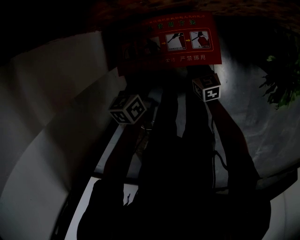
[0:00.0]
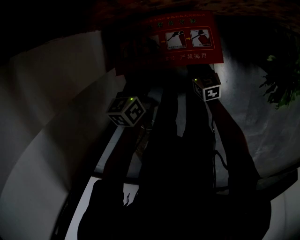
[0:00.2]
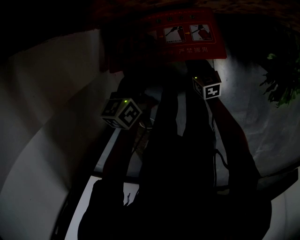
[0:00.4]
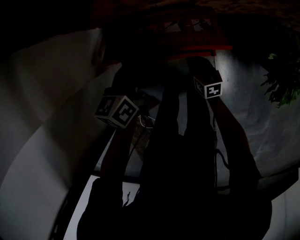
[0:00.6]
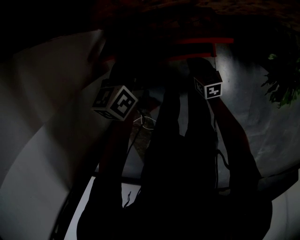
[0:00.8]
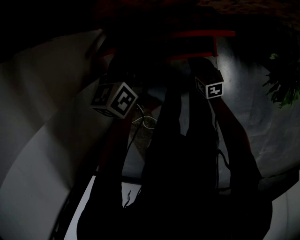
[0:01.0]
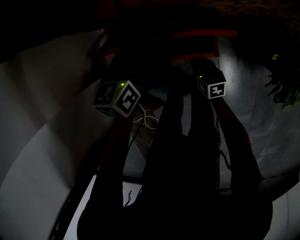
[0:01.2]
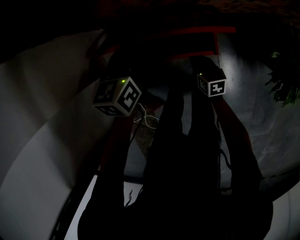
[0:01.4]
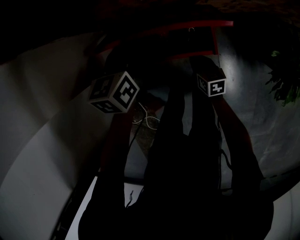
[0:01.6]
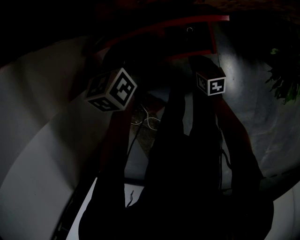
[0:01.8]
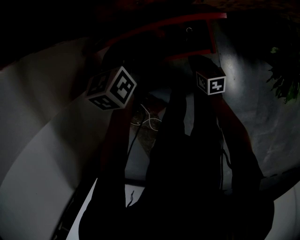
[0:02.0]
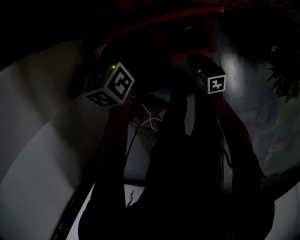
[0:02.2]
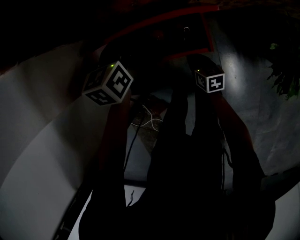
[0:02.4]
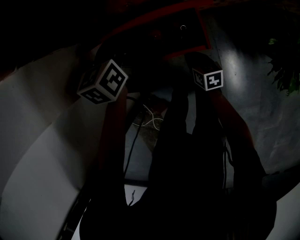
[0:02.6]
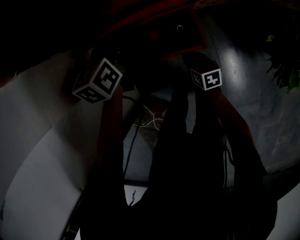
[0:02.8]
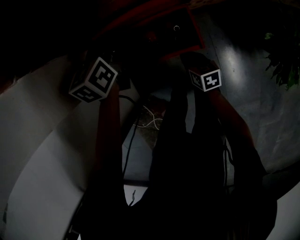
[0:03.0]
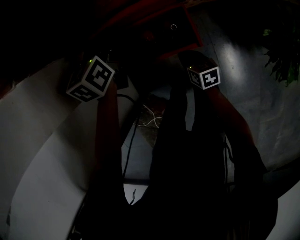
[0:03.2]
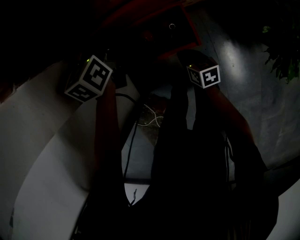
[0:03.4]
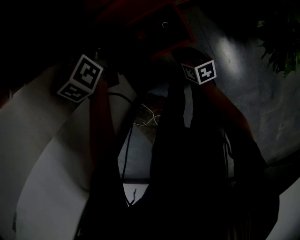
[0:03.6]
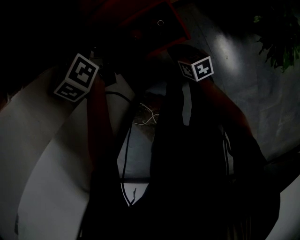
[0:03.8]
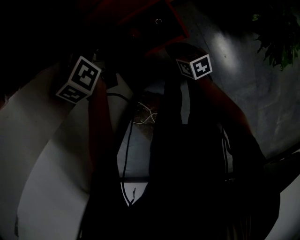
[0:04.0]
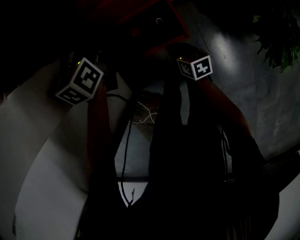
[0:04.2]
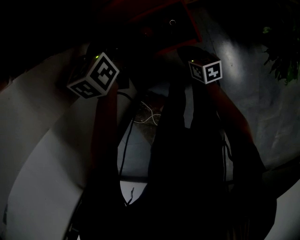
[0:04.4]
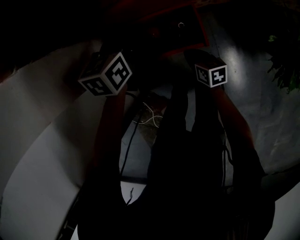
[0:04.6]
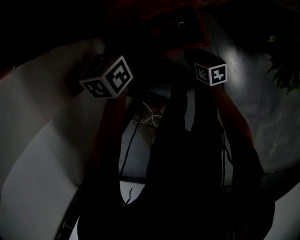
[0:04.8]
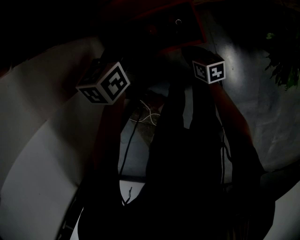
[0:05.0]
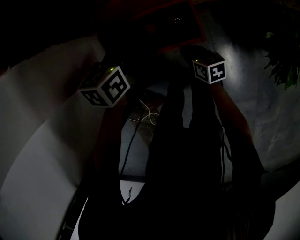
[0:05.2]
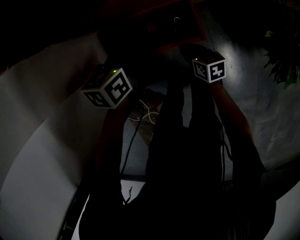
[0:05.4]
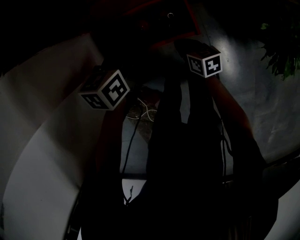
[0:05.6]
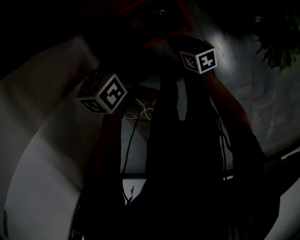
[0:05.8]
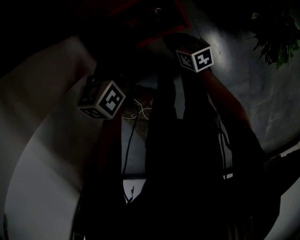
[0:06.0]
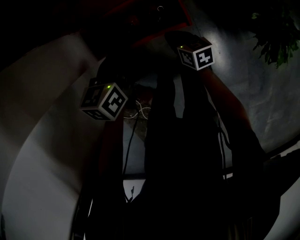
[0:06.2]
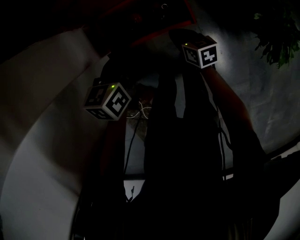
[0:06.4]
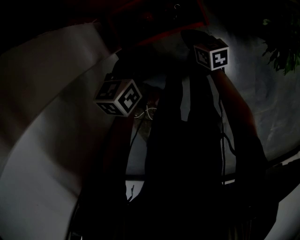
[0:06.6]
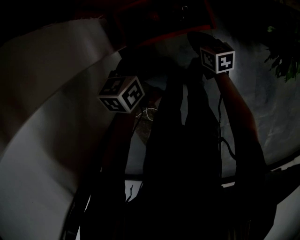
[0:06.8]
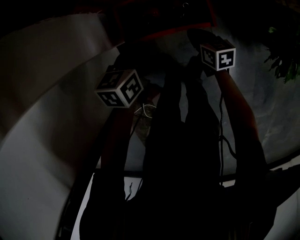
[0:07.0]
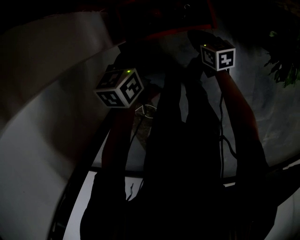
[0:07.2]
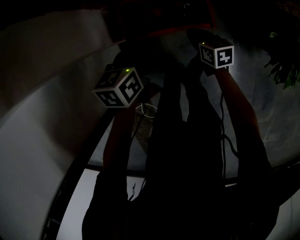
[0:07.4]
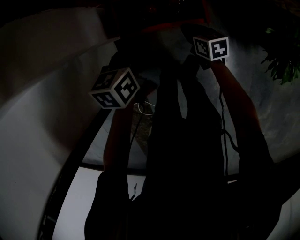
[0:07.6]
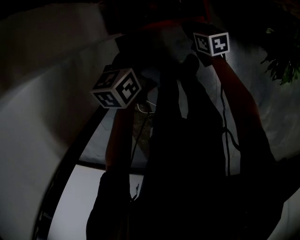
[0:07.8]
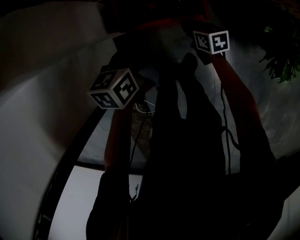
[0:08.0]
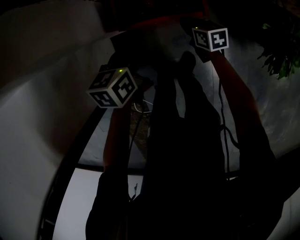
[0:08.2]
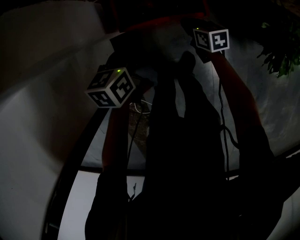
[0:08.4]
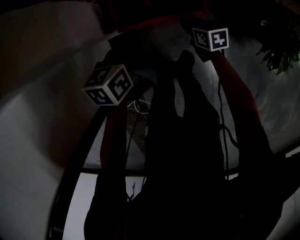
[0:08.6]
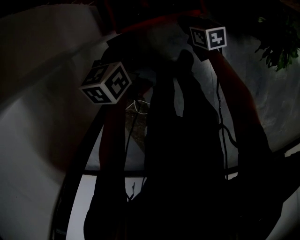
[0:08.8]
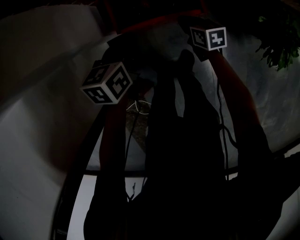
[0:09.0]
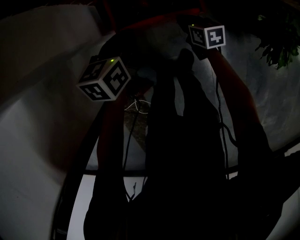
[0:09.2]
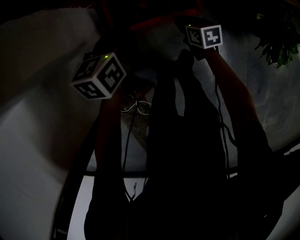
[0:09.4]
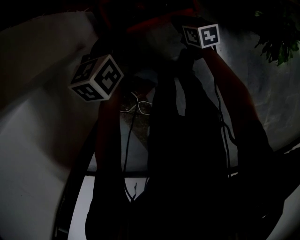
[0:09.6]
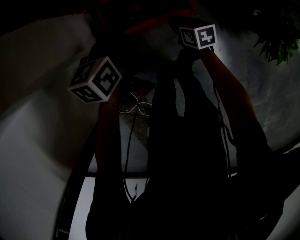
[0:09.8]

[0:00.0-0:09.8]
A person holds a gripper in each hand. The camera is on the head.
0:00.0 to 0:01.4: The left gripper travels forward and upward by roughly 15 cm, and changes its angle by approximately 20 degrees.
0:01.4 to 0:02.8: The left gripper shifts some 5 cm forward.
0:02.8 to 0:04.2: There are only small adjustments of the grippers.
0:04.2 to 0:05.6: The left gripper goes approximately 10 cm backward.
0:05.6 to 0:07.0: The left gripper heads backward, covering about 5 cm.
0:07.0 to 0:08.4: There are only small adjustments of the grippers.
0:08.4 to 0:09.8: The left gripper moves forward, roughly 5 cm.

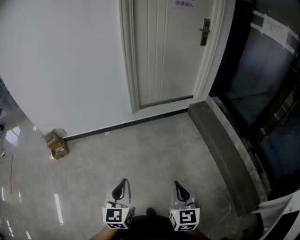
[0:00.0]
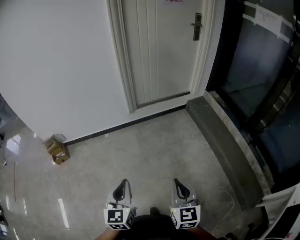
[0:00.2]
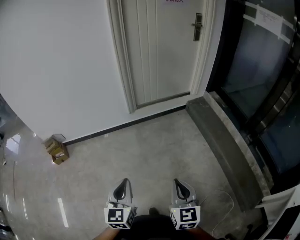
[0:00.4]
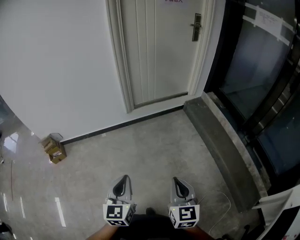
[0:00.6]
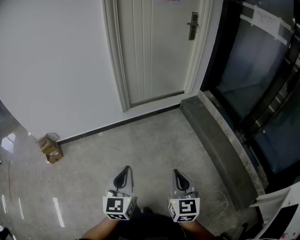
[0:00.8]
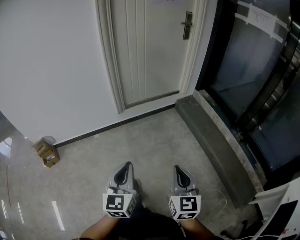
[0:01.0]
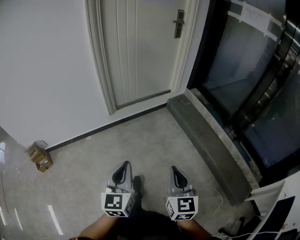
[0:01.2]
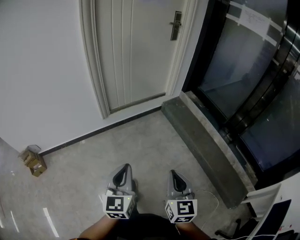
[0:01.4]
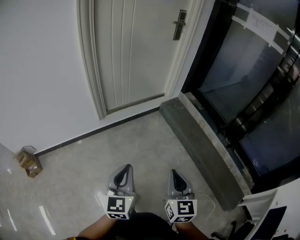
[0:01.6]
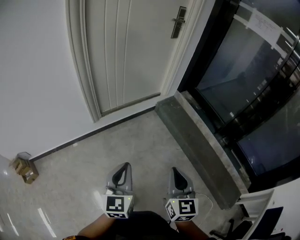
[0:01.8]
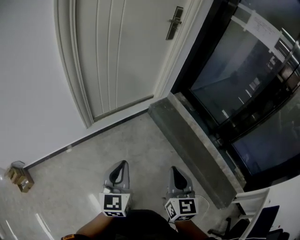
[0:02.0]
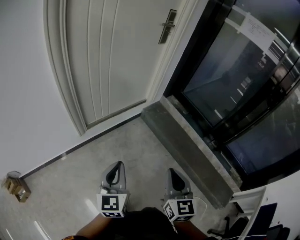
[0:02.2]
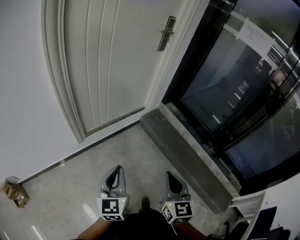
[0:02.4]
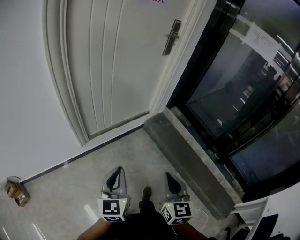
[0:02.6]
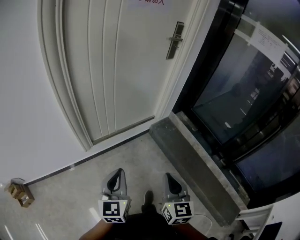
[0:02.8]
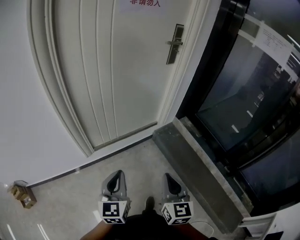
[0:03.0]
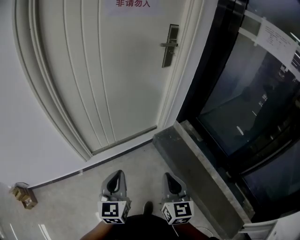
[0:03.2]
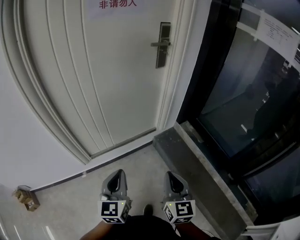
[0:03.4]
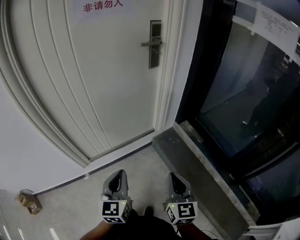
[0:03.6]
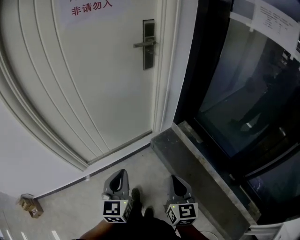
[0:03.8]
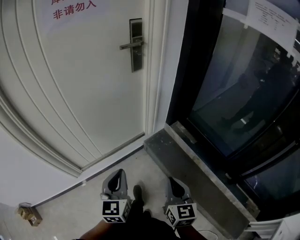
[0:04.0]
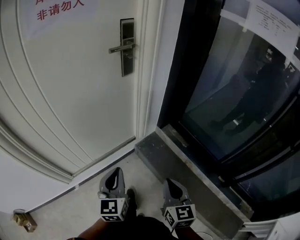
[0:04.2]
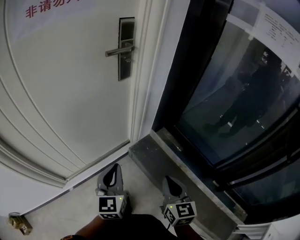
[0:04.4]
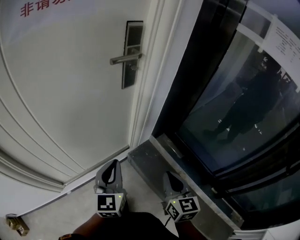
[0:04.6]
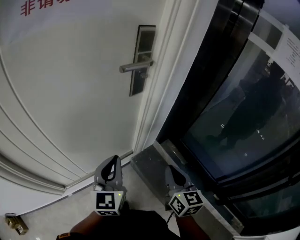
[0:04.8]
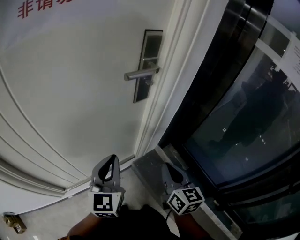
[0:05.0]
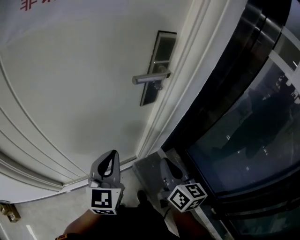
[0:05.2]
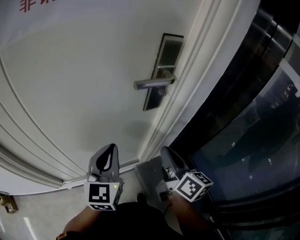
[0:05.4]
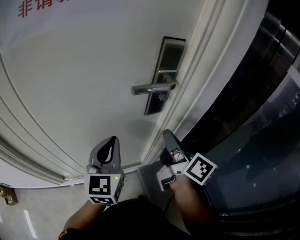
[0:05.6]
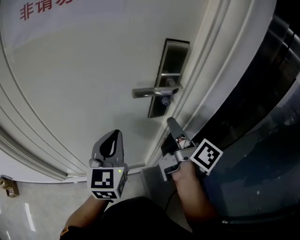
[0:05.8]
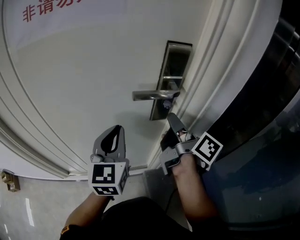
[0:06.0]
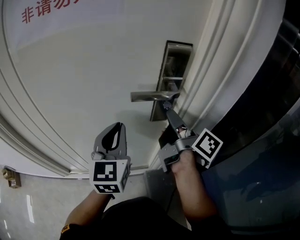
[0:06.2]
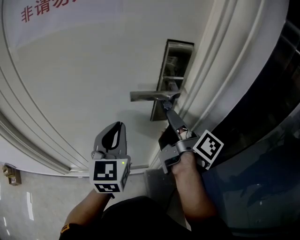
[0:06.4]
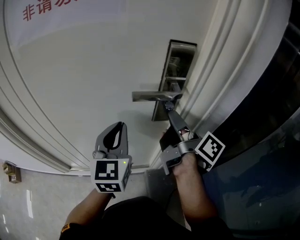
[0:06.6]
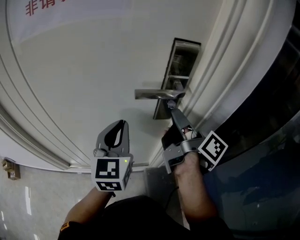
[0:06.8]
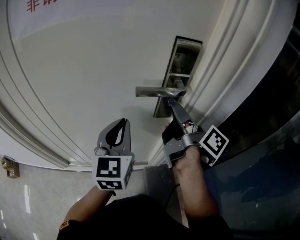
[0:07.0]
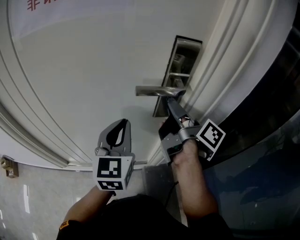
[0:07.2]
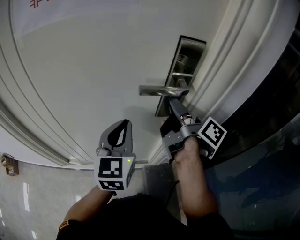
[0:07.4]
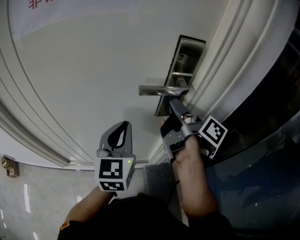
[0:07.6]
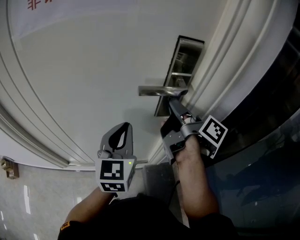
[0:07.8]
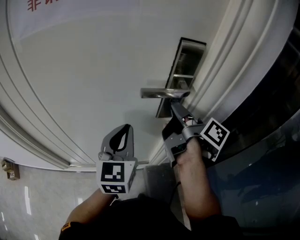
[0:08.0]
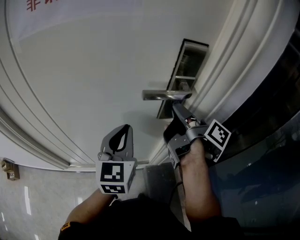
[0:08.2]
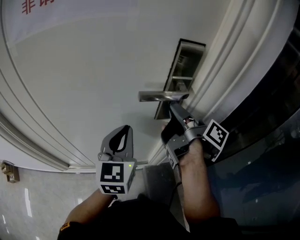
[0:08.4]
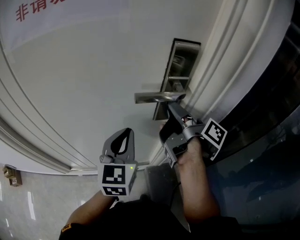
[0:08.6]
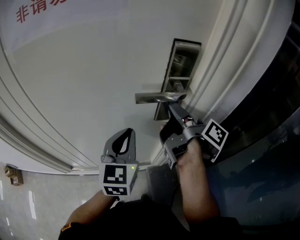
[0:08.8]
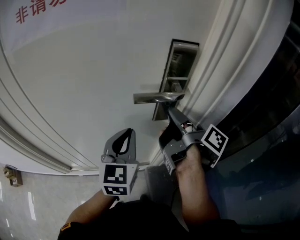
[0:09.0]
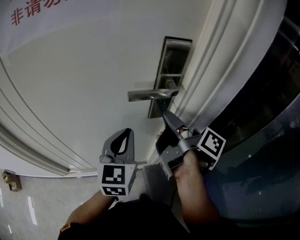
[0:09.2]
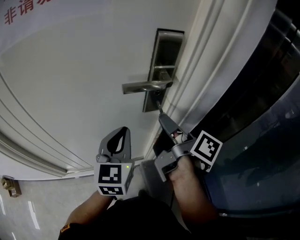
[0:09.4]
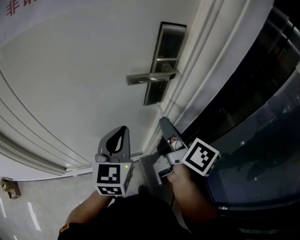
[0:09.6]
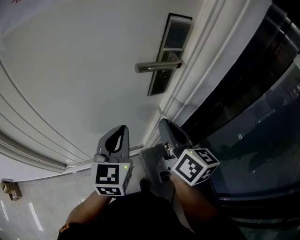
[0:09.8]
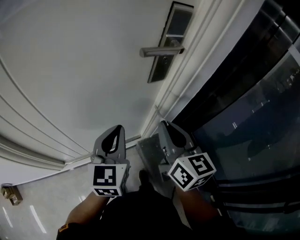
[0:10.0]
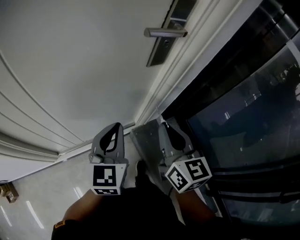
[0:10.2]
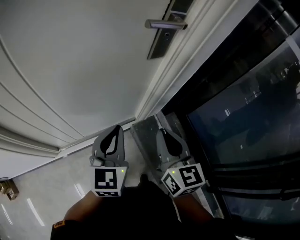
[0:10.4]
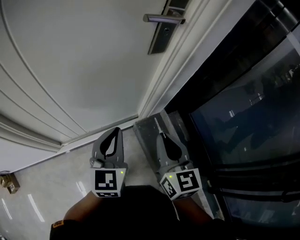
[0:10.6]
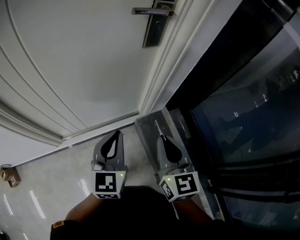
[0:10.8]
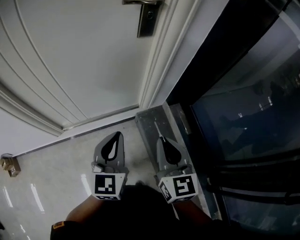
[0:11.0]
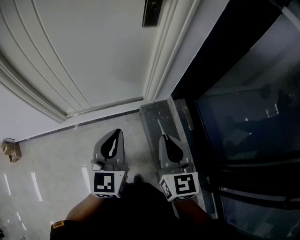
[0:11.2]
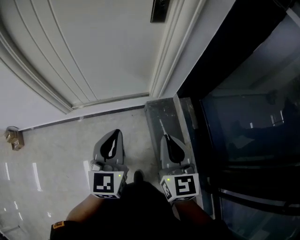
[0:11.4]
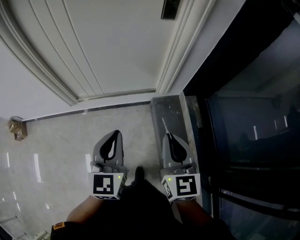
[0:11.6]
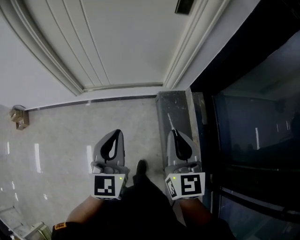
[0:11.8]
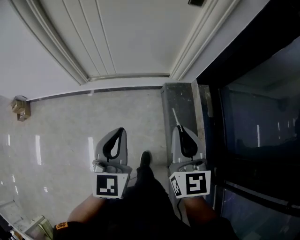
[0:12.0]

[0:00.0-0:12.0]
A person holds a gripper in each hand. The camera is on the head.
0:00.0 to 0:01.6: Both grippers travel together forward and to the right, approximately 25 cm.
0:01.6 to 0:03.0: The two grippers go roughly 30 cm forward.
0:03.0 to 0:04.4: The grippers both shift forward and to the right by some 40 cm.
0:04.4 to 0:06.0: The left gripper moves about 30 cm, and turns by about 30 degrees, while the right gripper ends up approximately 50 cm from where it was, and changes its angle by roughly 70 degrees.
0:06.0 to 0:09.0: The grippers stay close to where they were, moving slightly.
0:09.0 to 0:10.4: The right gripper moves backward and downward, some 25 cm, and twists approximately 80 degrees counterclockwise, seen from behind, while the left gripper moves backward and downward, approximately 20 cm.
0:10.4 to 0:12.0: Both grippers move backward, some 30 cm. The left gripper swivels some 20 degrees.

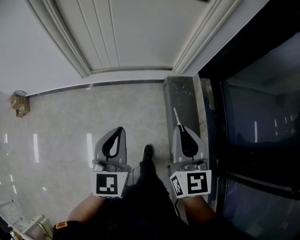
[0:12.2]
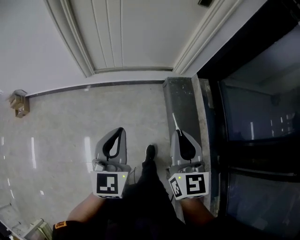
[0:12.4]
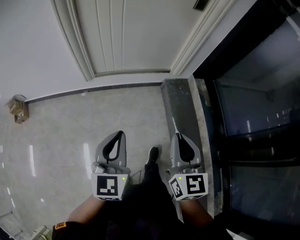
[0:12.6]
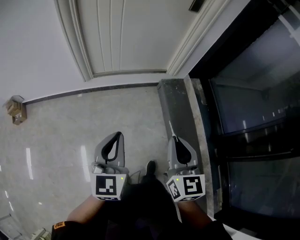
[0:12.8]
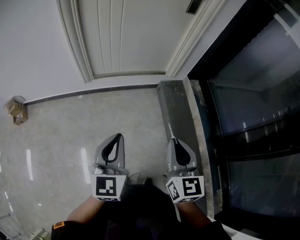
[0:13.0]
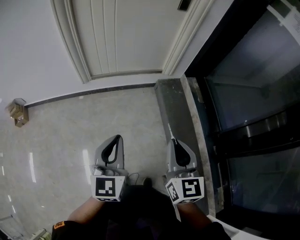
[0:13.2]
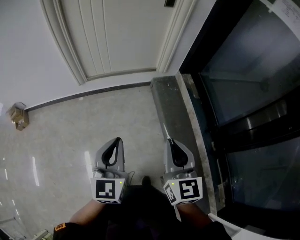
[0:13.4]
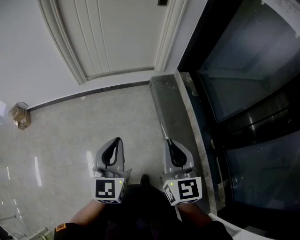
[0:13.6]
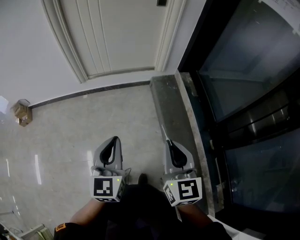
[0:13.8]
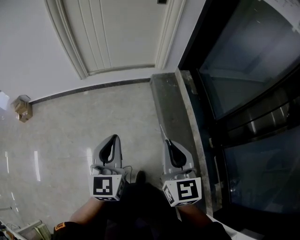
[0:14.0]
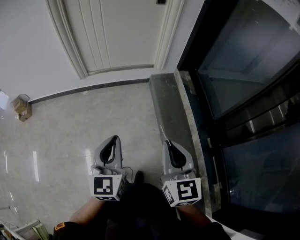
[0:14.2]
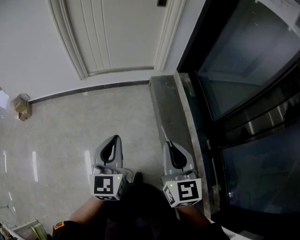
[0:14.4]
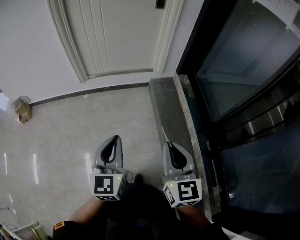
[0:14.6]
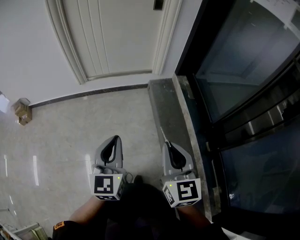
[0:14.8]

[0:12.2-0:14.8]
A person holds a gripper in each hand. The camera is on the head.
0:12.2 to 0:13.4: The two grippers go some 25 cm backward.
0:13.4 to 0:14.8: The right gripper travels backward and to the right by approximately 15 cm. Meanwhile the left gripper goes approximately 10 cm to the right and backward.
